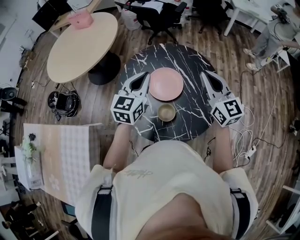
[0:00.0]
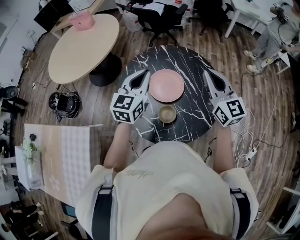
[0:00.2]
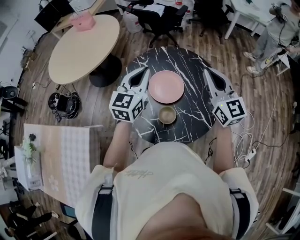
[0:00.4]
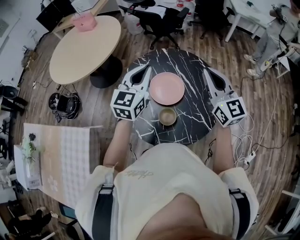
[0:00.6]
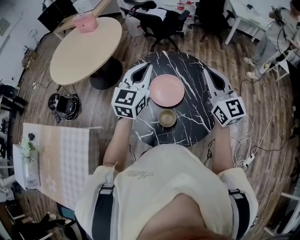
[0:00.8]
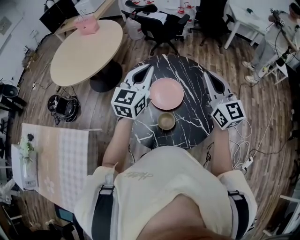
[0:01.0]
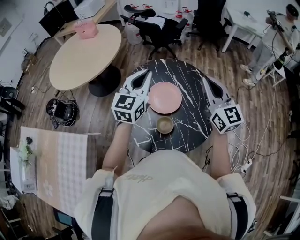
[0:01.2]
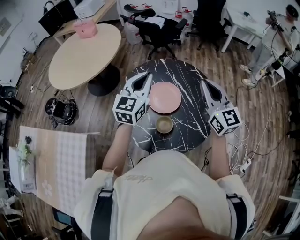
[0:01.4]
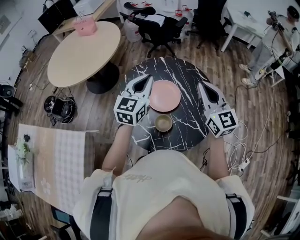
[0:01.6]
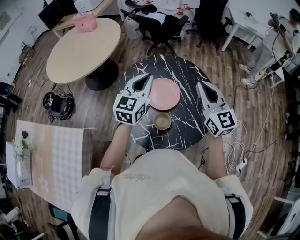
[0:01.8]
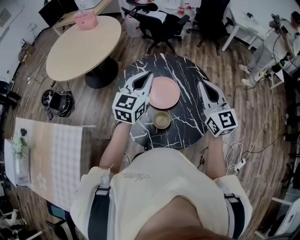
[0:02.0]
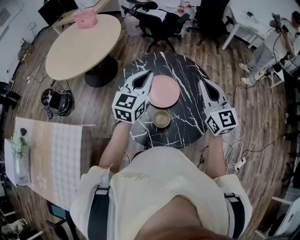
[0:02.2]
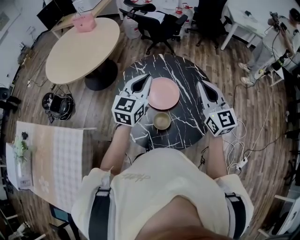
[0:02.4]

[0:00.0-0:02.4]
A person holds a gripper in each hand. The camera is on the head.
0:00.0 to 0:01.2: The right gripper ends up roughly 5 cm from where it was; the left gripper shifts approximately 5 cm upward.
0:01.2 to 0:02.4: The grippers make only small movements.

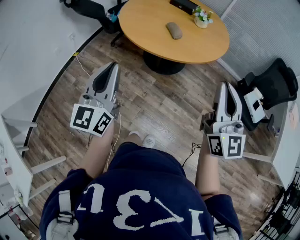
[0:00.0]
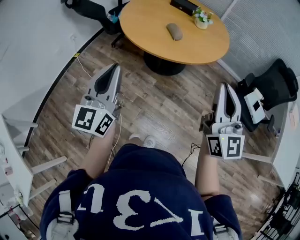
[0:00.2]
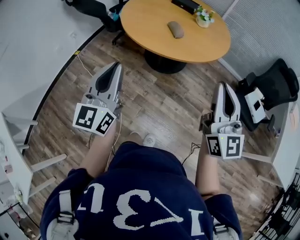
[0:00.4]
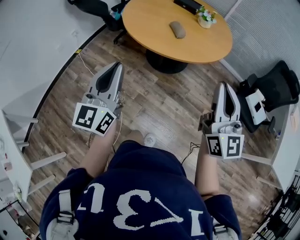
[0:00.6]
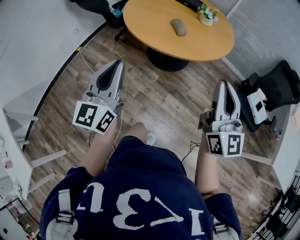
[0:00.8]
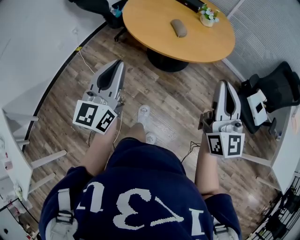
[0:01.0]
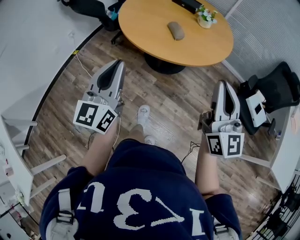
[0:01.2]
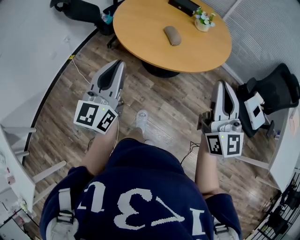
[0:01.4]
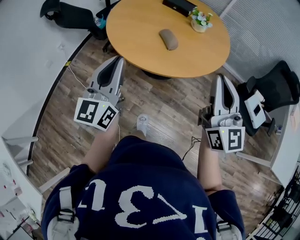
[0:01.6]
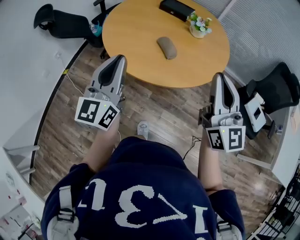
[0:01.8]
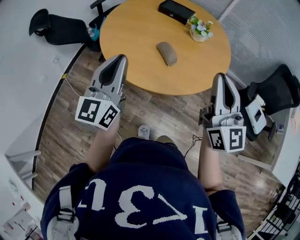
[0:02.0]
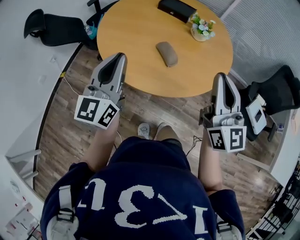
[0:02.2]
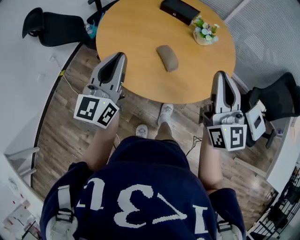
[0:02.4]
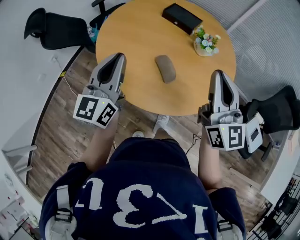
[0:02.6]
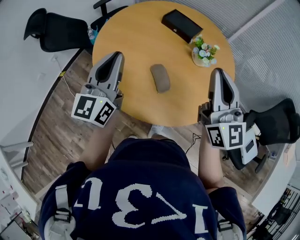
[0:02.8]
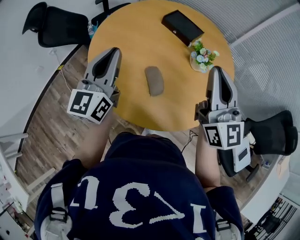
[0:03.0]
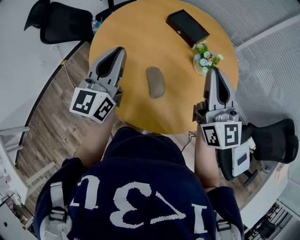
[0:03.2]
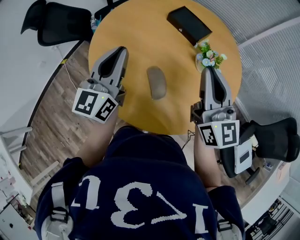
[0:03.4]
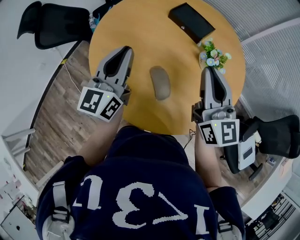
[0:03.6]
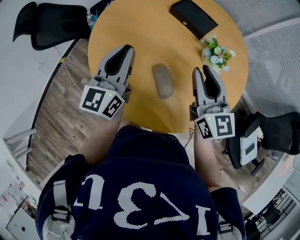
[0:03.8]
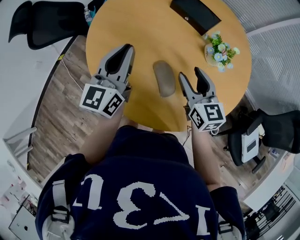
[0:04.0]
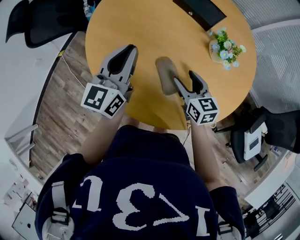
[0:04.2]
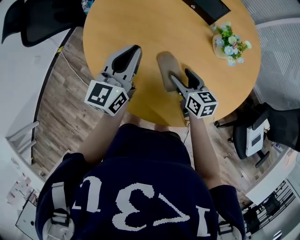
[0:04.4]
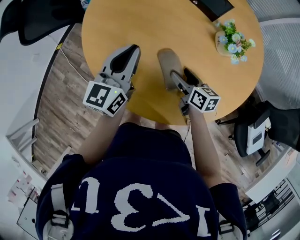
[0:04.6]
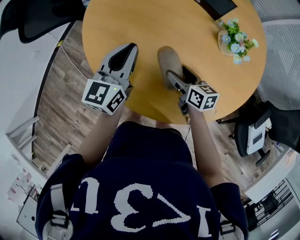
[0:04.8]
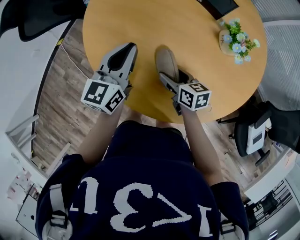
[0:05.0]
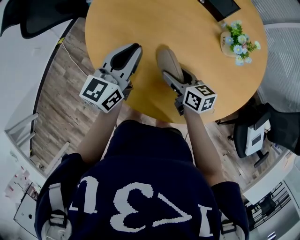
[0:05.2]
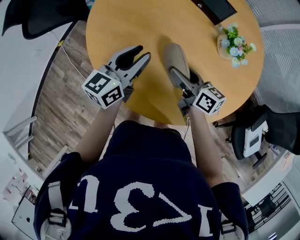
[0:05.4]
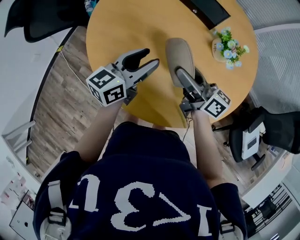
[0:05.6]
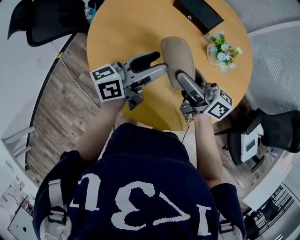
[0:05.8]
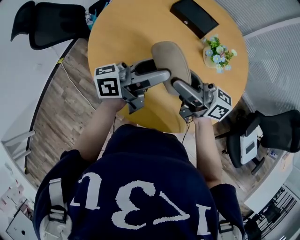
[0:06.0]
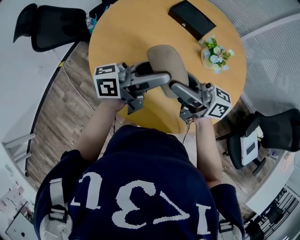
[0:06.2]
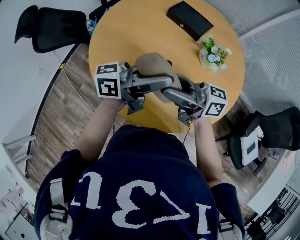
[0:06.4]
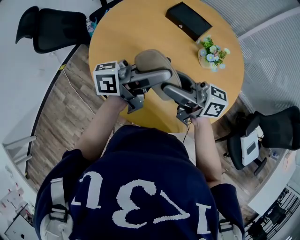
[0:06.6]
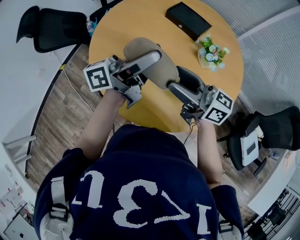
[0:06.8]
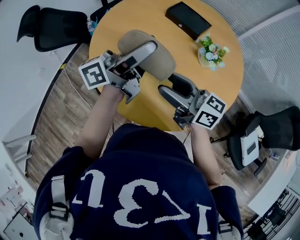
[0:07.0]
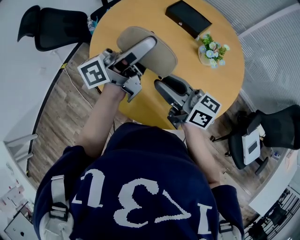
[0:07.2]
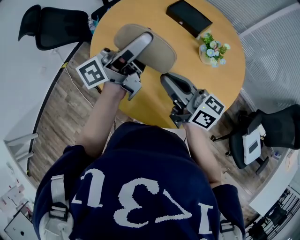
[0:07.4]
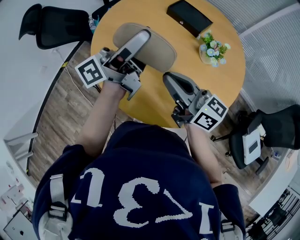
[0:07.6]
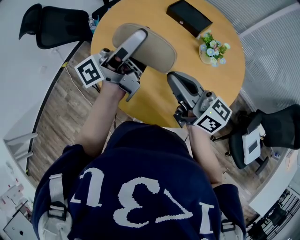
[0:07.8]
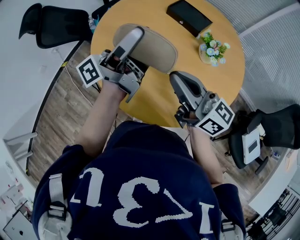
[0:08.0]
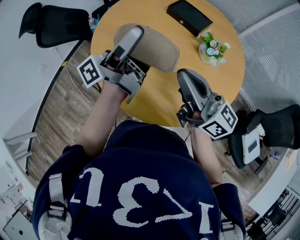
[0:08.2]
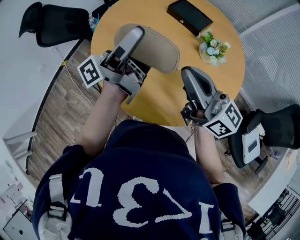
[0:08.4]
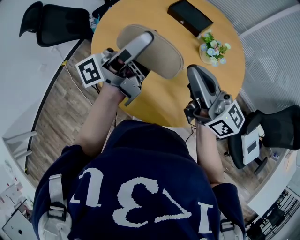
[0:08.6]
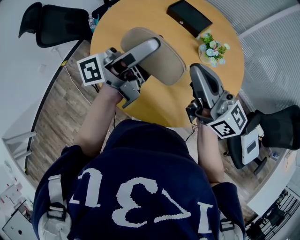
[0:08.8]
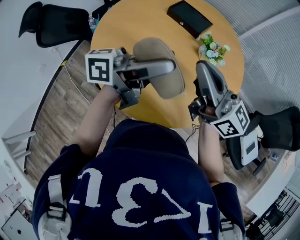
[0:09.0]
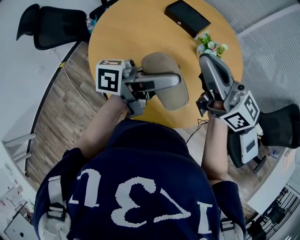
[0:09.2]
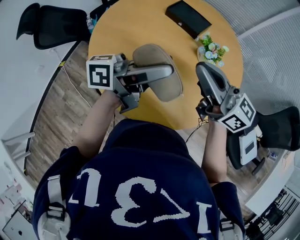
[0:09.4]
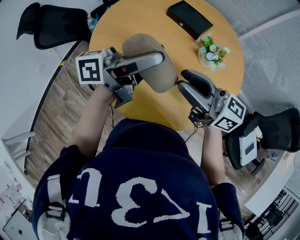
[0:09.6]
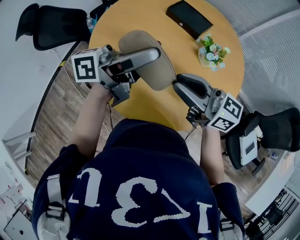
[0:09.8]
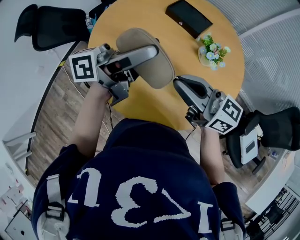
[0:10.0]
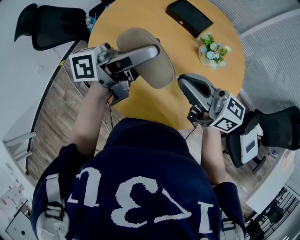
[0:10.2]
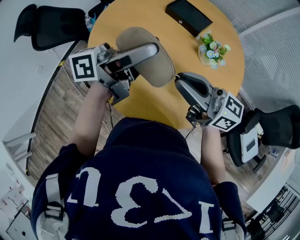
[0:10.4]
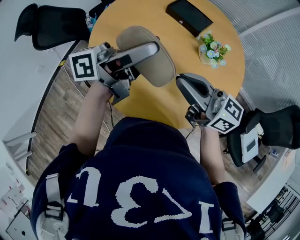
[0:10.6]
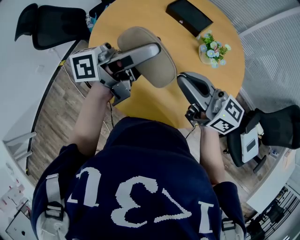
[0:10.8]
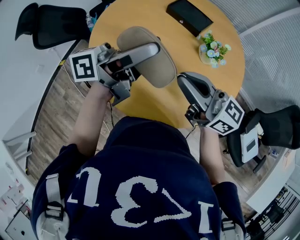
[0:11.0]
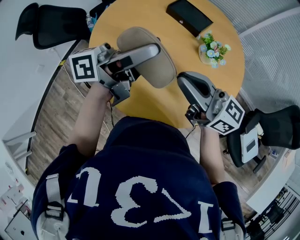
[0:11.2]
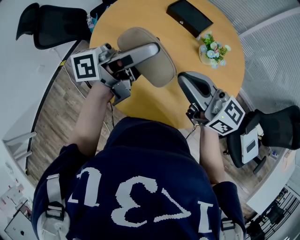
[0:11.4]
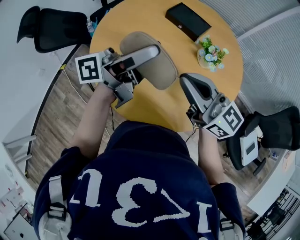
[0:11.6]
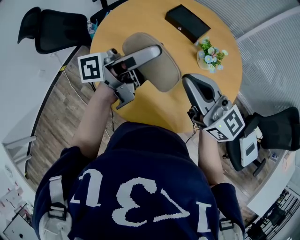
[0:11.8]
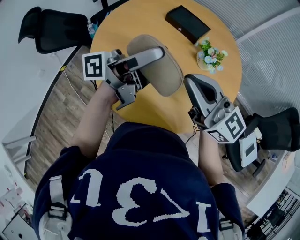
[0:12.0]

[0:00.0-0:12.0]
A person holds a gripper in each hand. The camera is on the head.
0:00.0 to 0:01.6: Both grippers travel together forward, about 20 cm.
0:01.6 to 0:03.0: The grippers both shift forward by some 35 cm.
0:03.0 to 0:04.4: The right gripper heads downward, covering approximately 35 cm, points its fingers approximately 40 degrees further downward, and opens; the left gripper heads downward and forward, covering some 20 cm.
0:04.4 to 0:06.0: The left gripper goes approximately 10 cm to the right and upward, turns by some 60 degrees, and opens up; the right gripper shifts approximately 25 cm upward, and tips its fingers upward by some 50 degrees.
0:06.0 to 0:07.6: The right gripper moves roughly 5 cm, and closes its fingers. Meanwhile the left gripper heads upward, covering approximately 10 cm, and rotates approximately 20 degrees.
0:07.6 to 0:09.0: The right gripper is displaced upward and to the right by roughly 10 cm. The left gripper heads to the right and backward, covering approximately 10 cm, and changes its angle by about 30 degrees.
0:09.0 to 0:10.4: The right gripper heads downward, covering about 5 cm, and swivels approximately 20 degrees. The left gripper changes place by approximately 5 cm.
0:10.4 to 0:12.0: The right gripper rotates approximately 30 degrees.

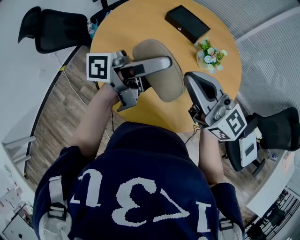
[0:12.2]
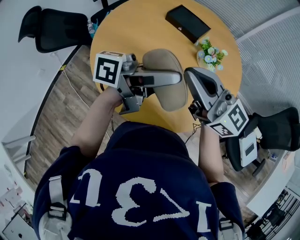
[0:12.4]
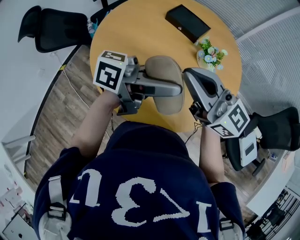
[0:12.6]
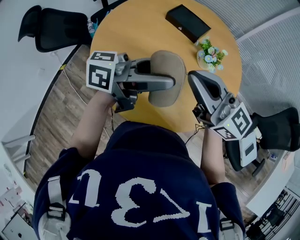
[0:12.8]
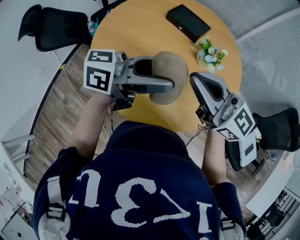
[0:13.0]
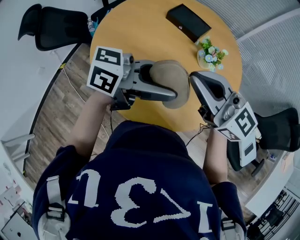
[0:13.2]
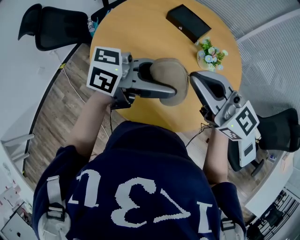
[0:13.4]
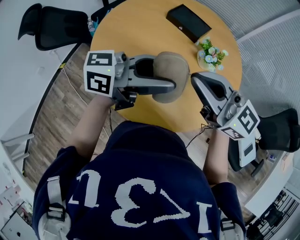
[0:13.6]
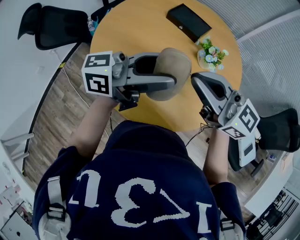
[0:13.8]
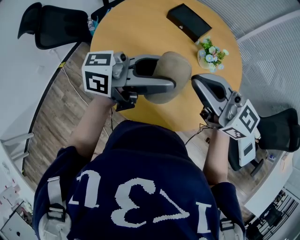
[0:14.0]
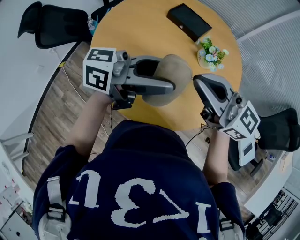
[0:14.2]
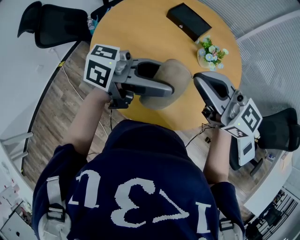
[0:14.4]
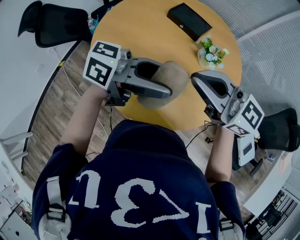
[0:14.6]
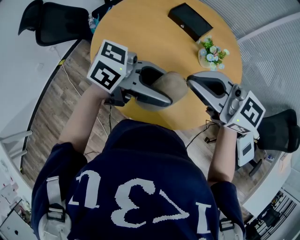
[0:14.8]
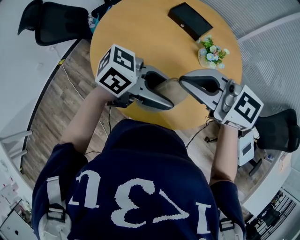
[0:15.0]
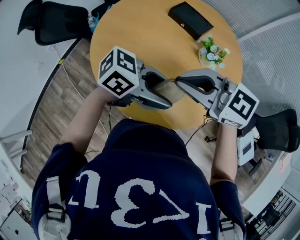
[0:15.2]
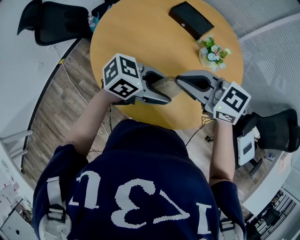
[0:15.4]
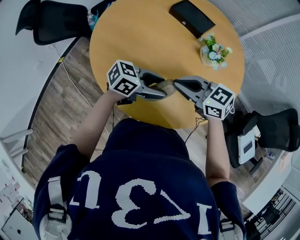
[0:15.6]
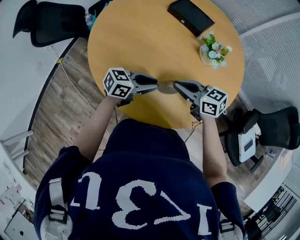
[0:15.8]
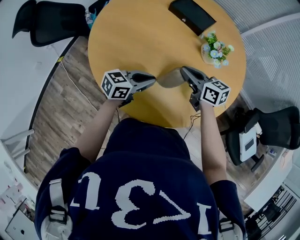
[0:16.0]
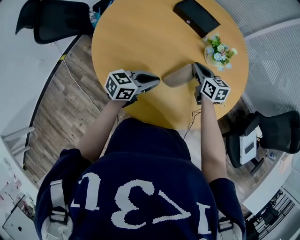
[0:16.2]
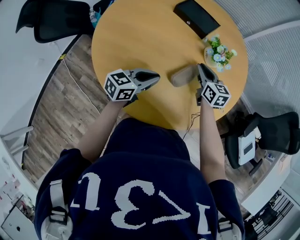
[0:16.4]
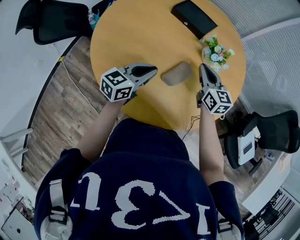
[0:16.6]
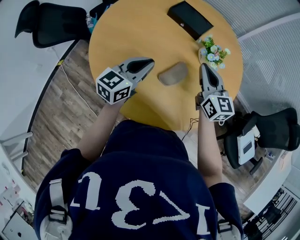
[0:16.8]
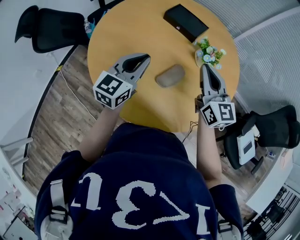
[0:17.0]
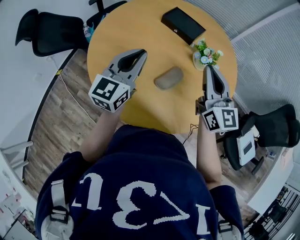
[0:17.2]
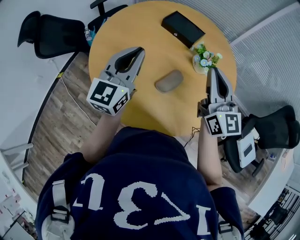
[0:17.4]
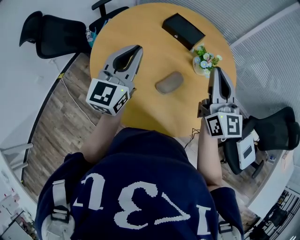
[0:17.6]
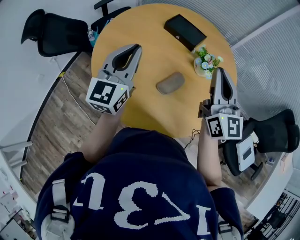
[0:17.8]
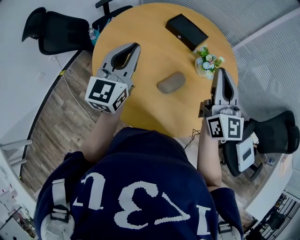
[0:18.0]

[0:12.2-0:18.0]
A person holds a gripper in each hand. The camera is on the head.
0:12.2 to 0:13.6: The left gripper swivels approximately 30 degrees.
0:13.6 to 0:15.0: The left gripper moves downward, approximately 5 cm, and rotates roughly 30 degrees. Meanwhile the right gripper rotates approximately 20 degrees.
0:15.0 to 0:16.6: Both grippers move downward, roughly 15 cm. The left gripper turns by about 40 degrees, and closes its fingers; the right gripper swivels about 60 degrees.
0:16.6 to 0:18.0: Both grippers move upward, approximately 20 cm. The right gripper changes its angle by approximately 30 degrees, while the left gripper swivels approximately 40 degrees.

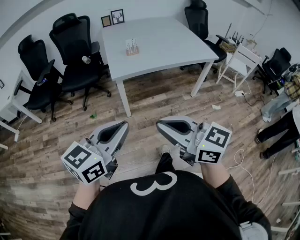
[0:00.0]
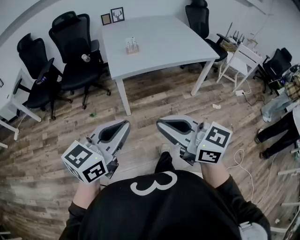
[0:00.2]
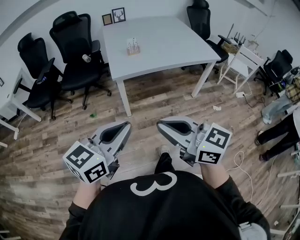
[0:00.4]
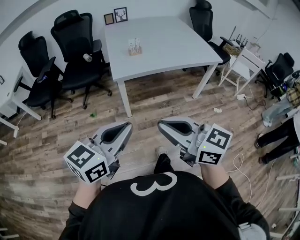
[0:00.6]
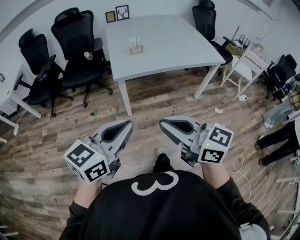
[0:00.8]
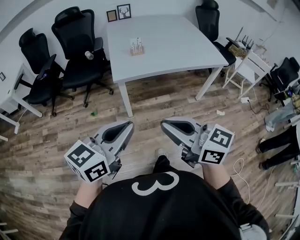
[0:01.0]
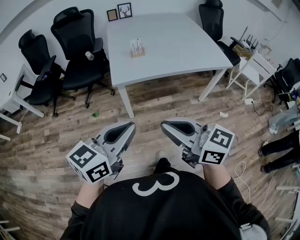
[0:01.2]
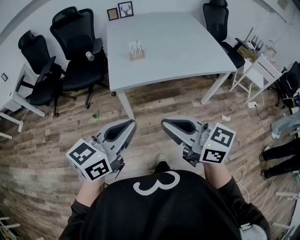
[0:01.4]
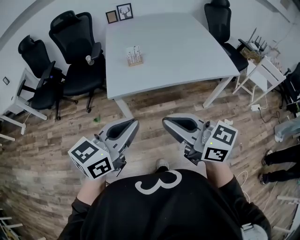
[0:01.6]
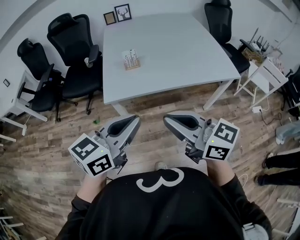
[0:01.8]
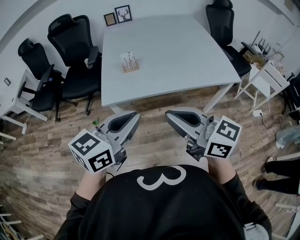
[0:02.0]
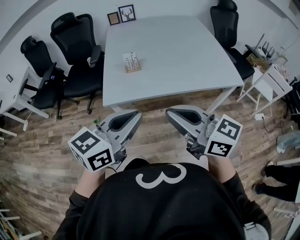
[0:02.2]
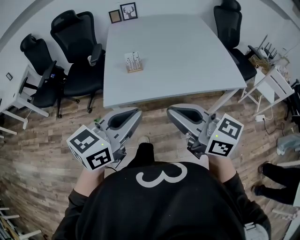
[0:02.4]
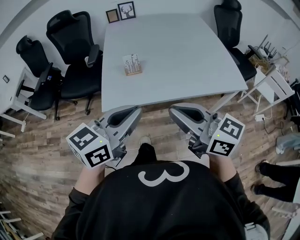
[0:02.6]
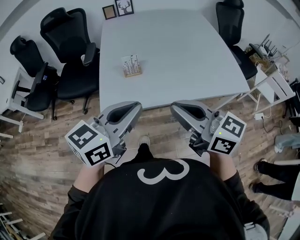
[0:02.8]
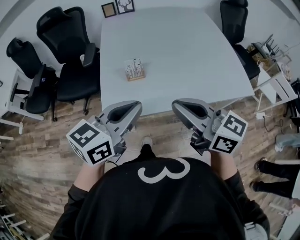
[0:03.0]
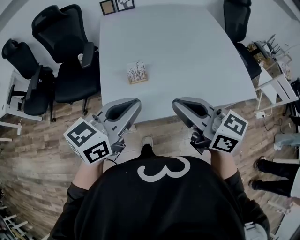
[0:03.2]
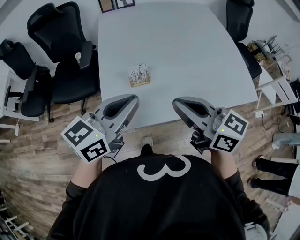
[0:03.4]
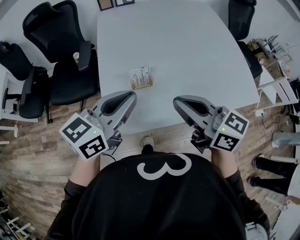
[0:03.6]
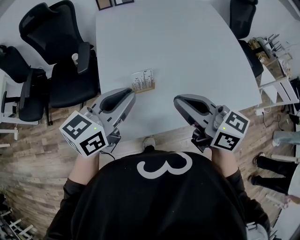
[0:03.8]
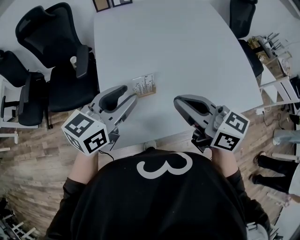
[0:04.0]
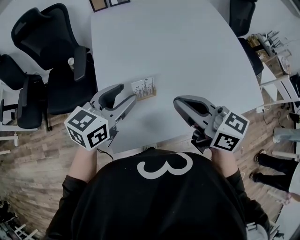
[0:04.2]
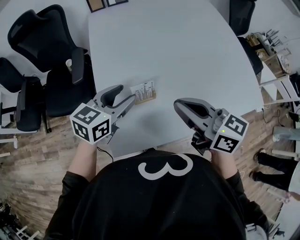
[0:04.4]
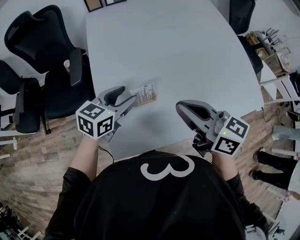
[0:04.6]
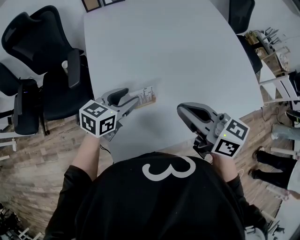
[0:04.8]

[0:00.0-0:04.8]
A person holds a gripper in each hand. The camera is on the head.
0:00.0 to 0:01.6: Both grippers move forward and to the right, roughly 25 cm.
0:01.6 to 0:03.2: The grippers both shift forward by some 30 cm.
0:03.2 to 0:04.8: The left gripper travels forward and downward by approximately 30 cm, and opens. The right gripper heads forward and downward, covering roughly 15 cm.
